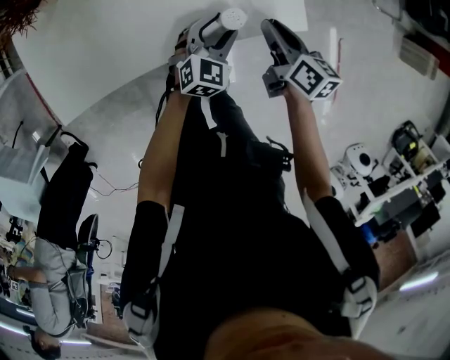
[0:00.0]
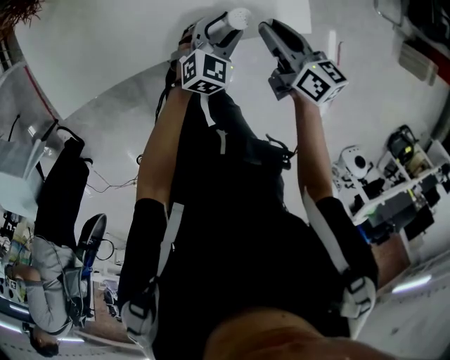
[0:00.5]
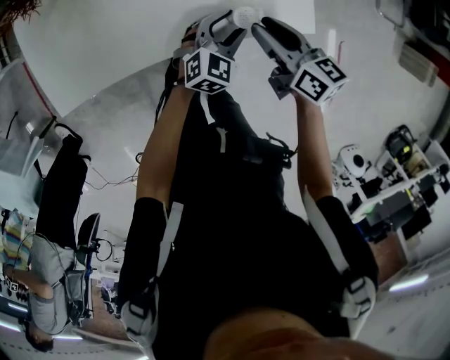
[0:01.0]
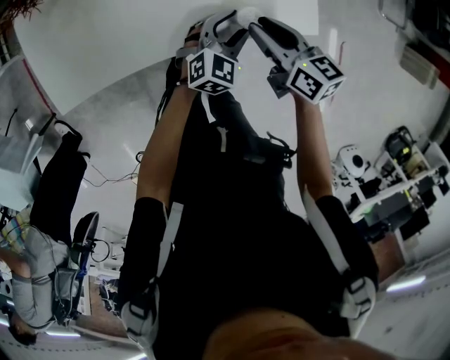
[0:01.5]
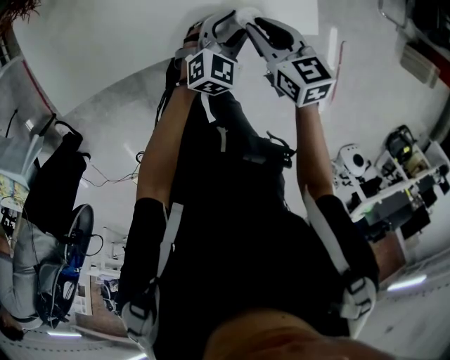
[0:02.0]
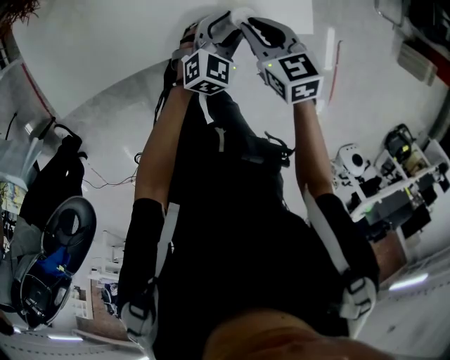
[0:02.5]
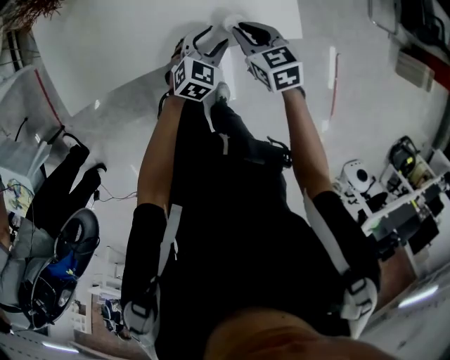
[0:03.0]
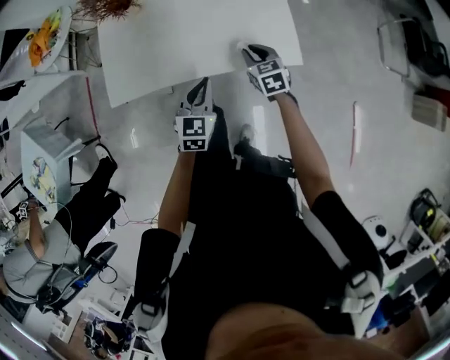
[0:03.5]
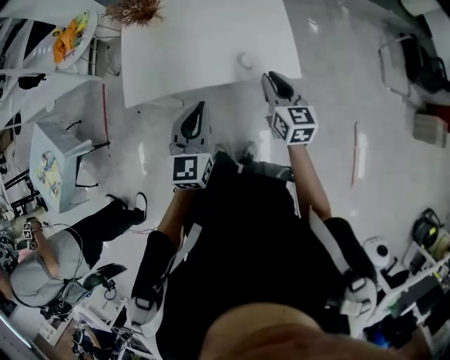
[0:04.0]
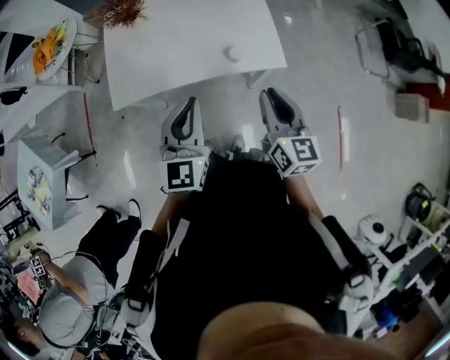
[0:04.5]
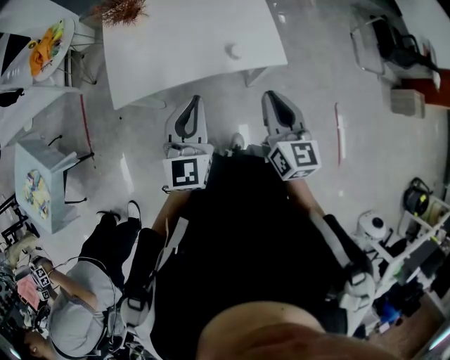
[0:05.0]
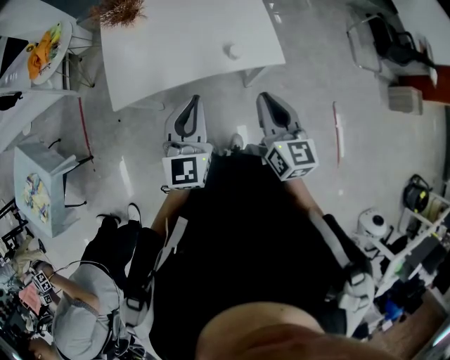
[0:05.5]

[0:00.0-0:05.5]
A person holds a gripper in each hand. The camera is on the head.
0:00.0 to 0:02.0: The right gripper travels to the left by approximately 10 cm, and turns by about 40 degrees.
0:02.0 to 0:03.5: The right gripper goes roughly 10 cm upward and to the right. The left gripper goes some 20 cm upward and backward, swivels some 30 degrees, and closes.
0:03.5 to 0:05.5: The right gripper goes some 30 cm upward and backward, and turns by some 30 degrees. Meanwhile the left gripper is displaced upward, to the left and backward by roughly 25 cm, and changes its angle by about 20 degrees.

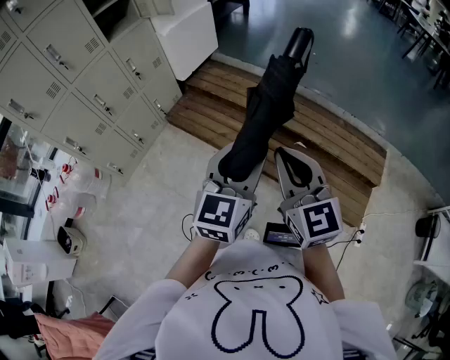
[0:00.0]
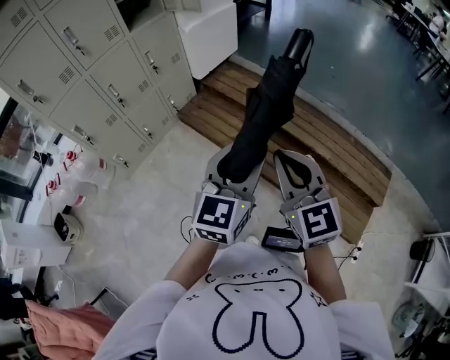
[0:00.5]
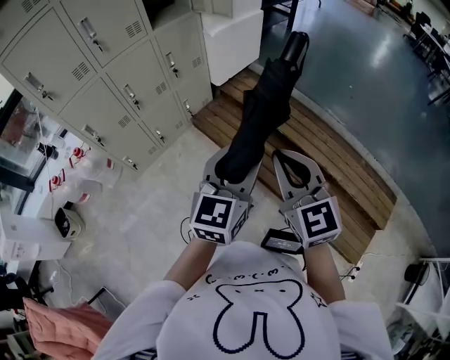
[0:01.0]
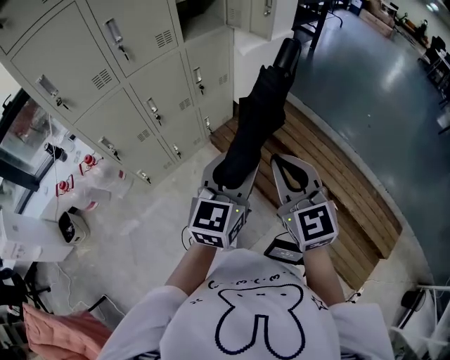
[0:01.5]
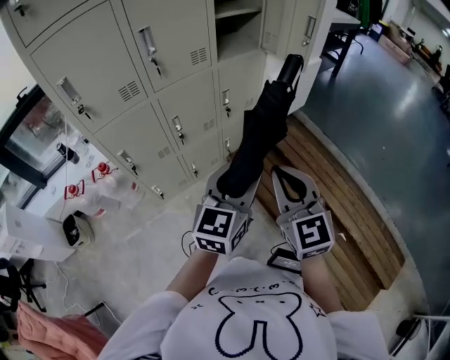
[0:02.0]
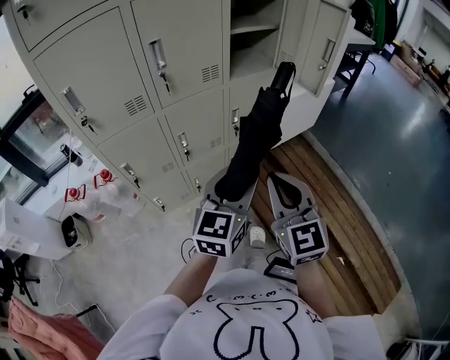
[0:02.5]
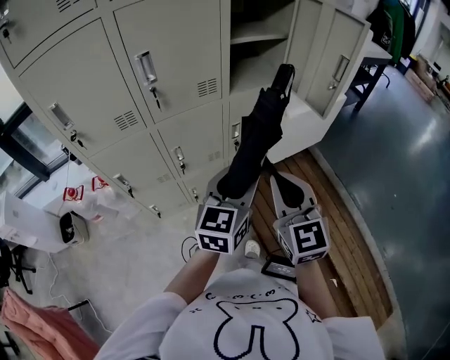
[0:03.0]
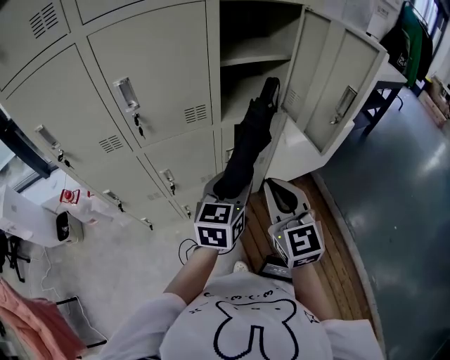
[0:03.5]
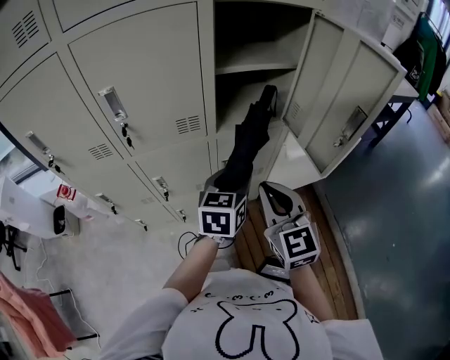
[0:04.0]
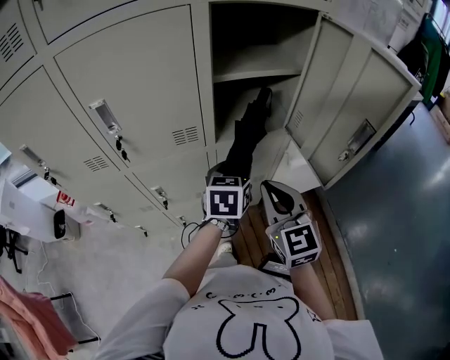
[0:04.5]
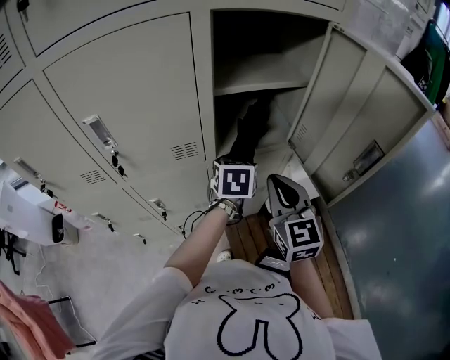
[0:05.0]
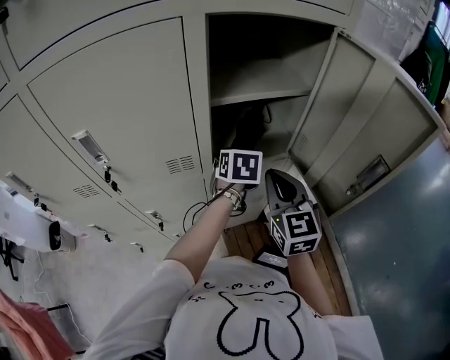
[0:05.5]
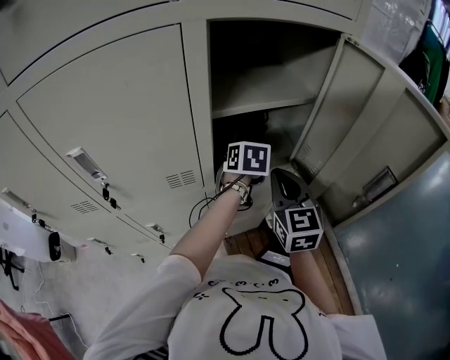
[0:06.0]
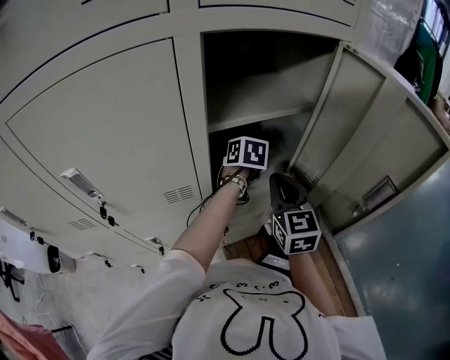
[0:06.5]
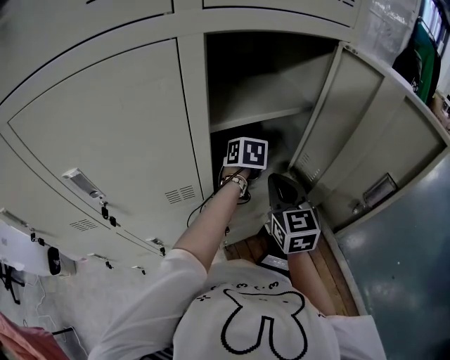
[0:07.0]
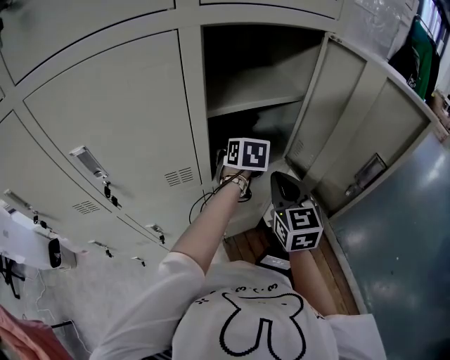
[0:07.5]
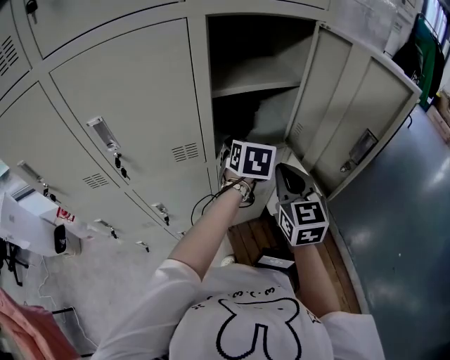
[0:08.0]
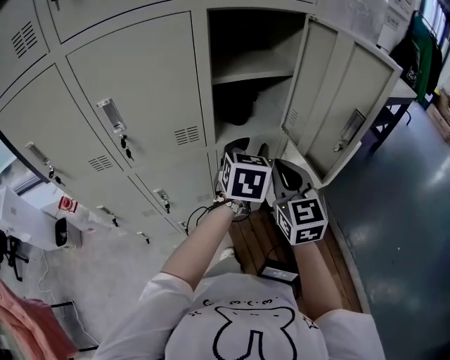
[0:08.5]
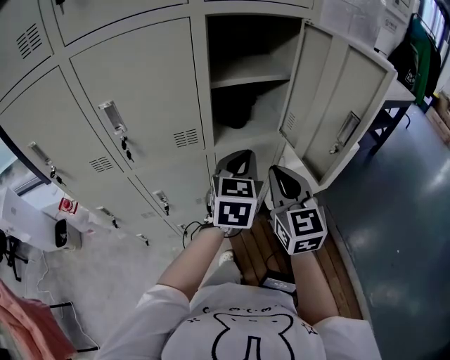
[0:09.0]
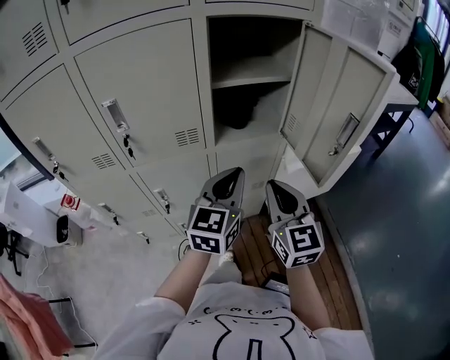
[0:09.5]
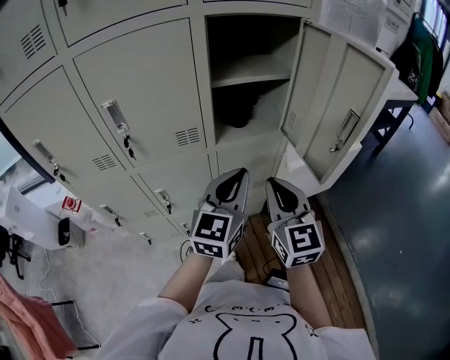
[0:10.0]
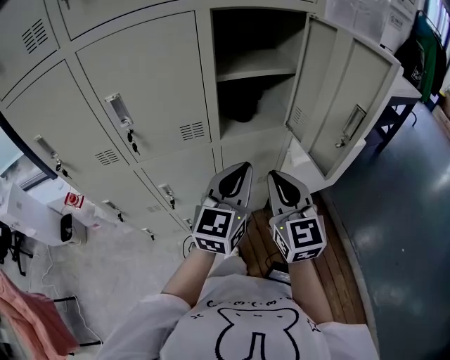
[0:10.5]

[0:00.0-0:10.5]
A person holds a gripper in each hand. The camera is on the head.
0:00.0 to 0:02.0: Both grippers are carried to the left and forward, roughly 50 cm. The left gripper changes its angle by some 20 degrees; the right gripper changes its angle by approximately 20 degrees.
0:02.0 to 0:04.0: The grippers both shift forward by approximately 35 cm. The left gripper rotates about 30 degrees.
0:04.0 to 0:06.5: Both grippers travel together forward, approximately 25 cm. The left gripper rotates about 30 degrees.
0:06.5 to 0:08.5: The right gripper shifts some 15 cm backward; the left gripper travels backward and upward by about 25 cm, changes its angle by approximately 30 degrees, and opens, then closes again.
0:08.5 to 0:10.5: The right gripper shifts approximately 5 cm backward. Meanwhile the left gripper is displaced backward by approximately 10 cm, swivels approximately 30 degrees, and closes up.

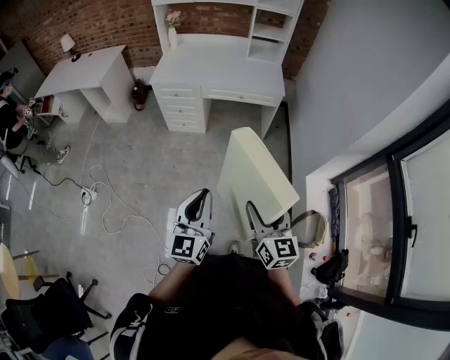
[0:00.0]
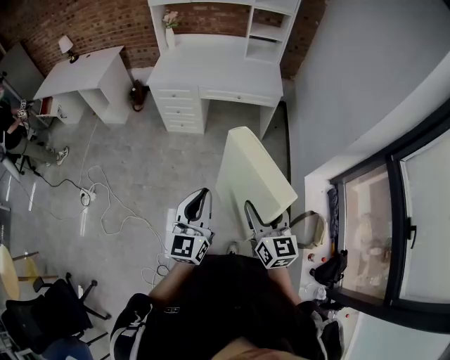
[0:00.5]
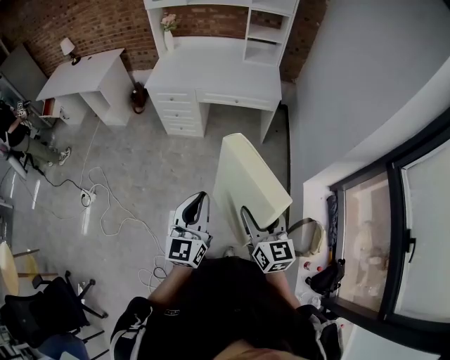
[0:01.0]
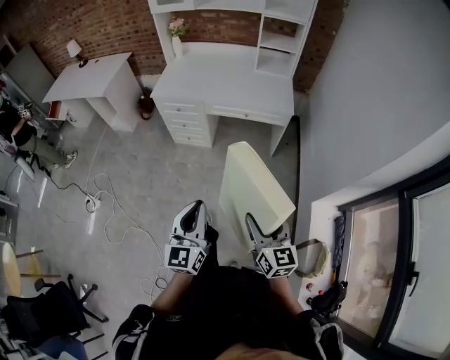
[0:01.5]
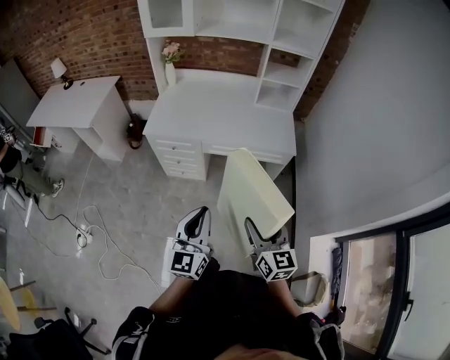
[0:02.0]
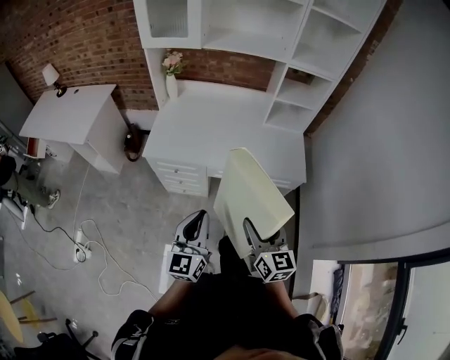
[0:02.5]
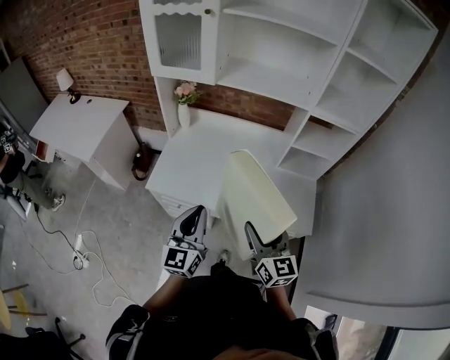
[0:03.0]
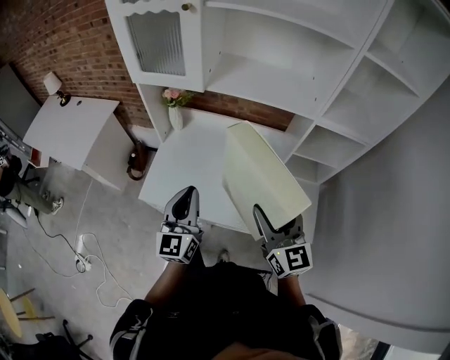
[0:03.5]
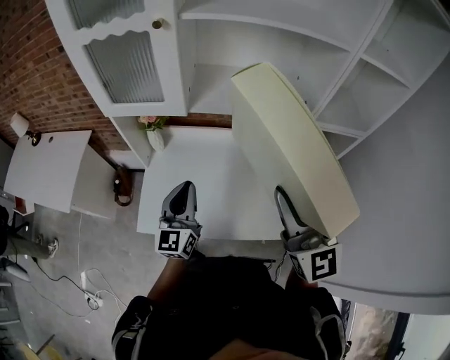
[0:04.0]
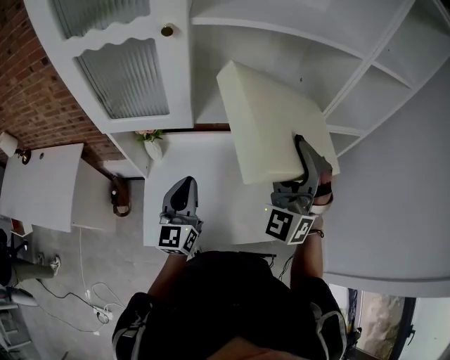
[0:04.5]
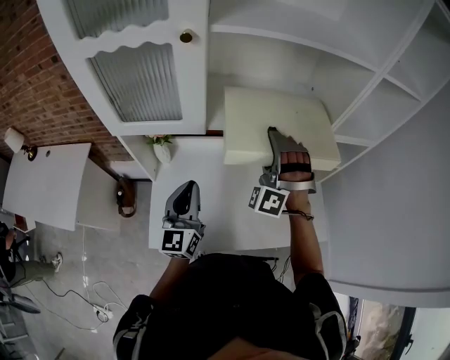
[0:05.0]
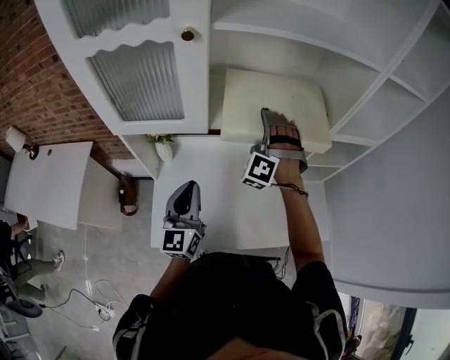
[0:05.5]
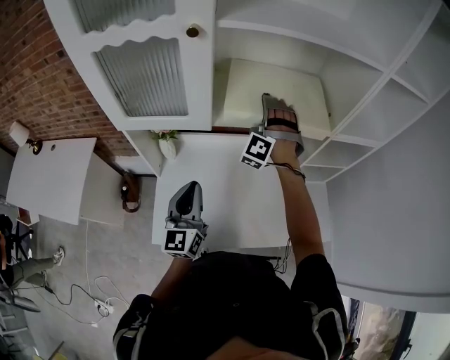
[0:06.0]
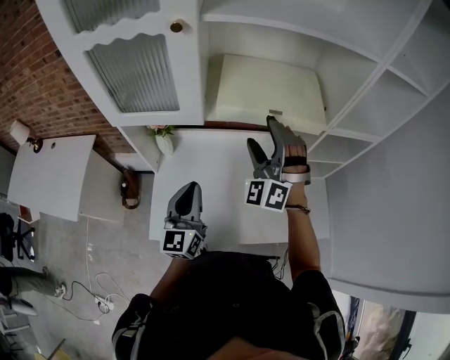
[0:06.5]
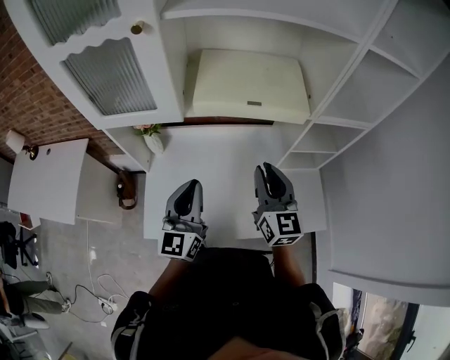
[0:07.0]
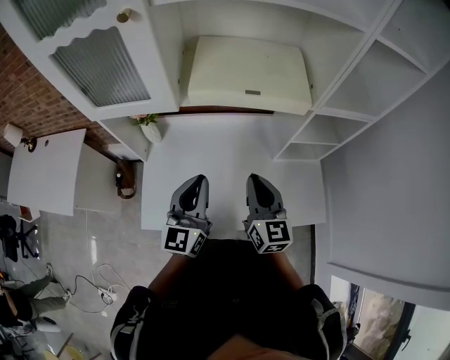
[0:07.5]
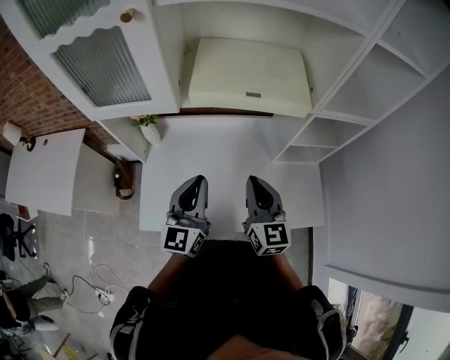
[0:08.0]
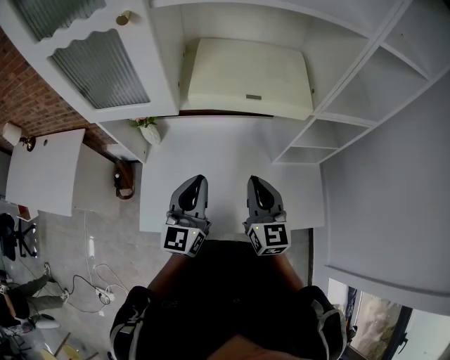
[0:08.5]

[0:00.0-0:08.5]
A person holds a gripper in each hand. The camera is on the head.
0:00.0 to 0:02.0: The grippers both shift forward by some 35 cm.
0:02.0 to 0:04.0: The pair of grippers is taken forward, roughly 60 cm. The right gripper moves upward, roughly 25 cm, and rotates about 40 degrees.
0:04.0 to 0:06.5: The right gripper is displaced forward, downward and to the left by about 25 cm, and rolls counterclockwise, seen from behind, by some 50 degrees; the left gripper moves about 5 cm.
0:06.5 to 0:08.5: The left gripper is displaced to the right by roughly 10 cm. The right gripper travels backward, downward and to the right by some 15 cm, rolls clockwise, seen from behind, by approximately 70 degrees, and closes its fingers.

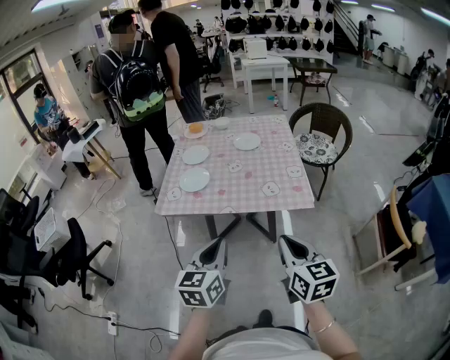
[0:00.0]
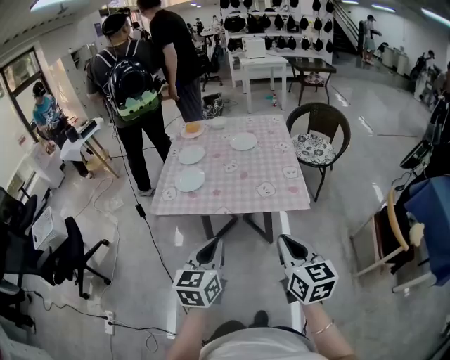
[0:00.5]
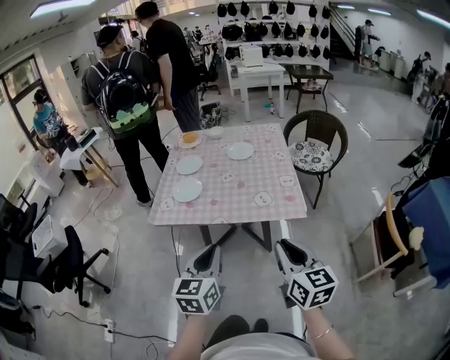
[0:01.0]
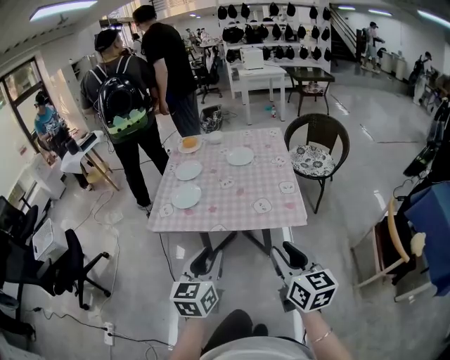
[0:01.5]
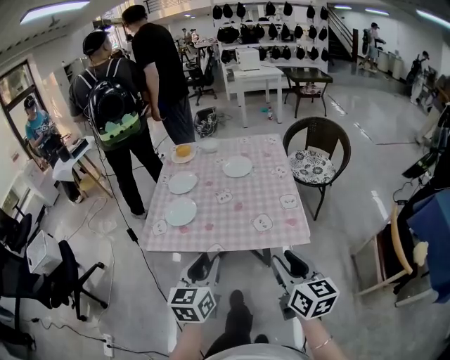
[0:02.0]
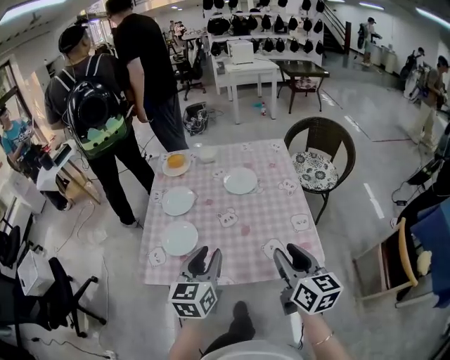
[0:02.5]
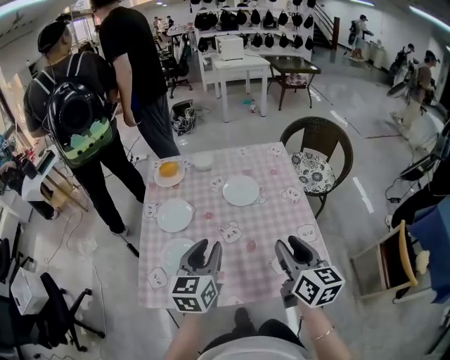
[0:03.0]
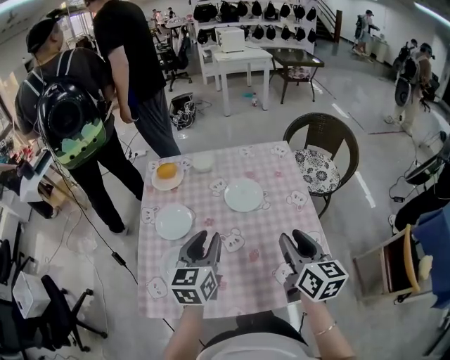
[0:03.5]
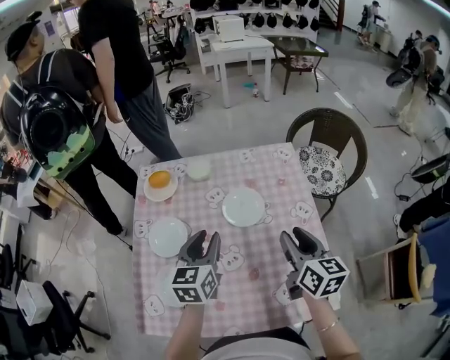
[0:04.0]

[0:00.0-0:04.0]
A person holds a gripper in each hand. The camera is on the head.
0:00.0 to 0:02.0: The grippers both shift forward by approximately 15 cm. The left gripper opens its fingers; the right gripper opens.
0:02.0 to 0:04.0: The pair of grippers is taken forward, some 50 cm.
